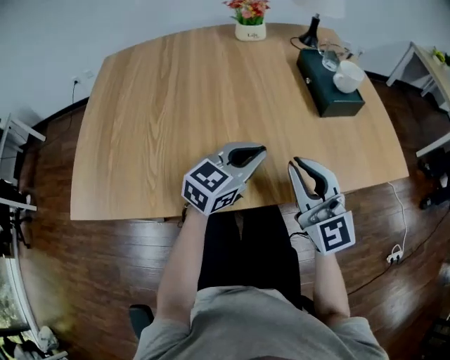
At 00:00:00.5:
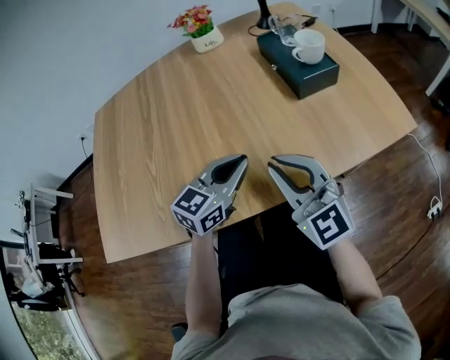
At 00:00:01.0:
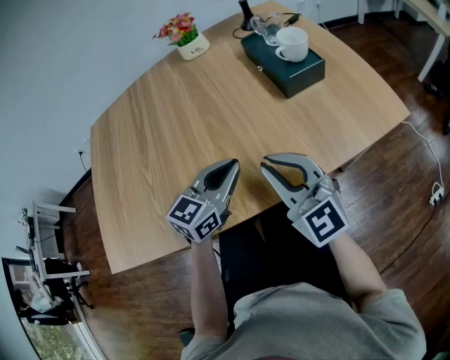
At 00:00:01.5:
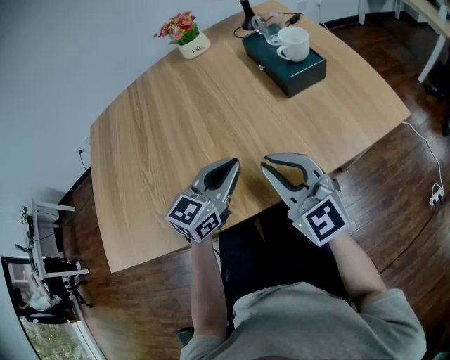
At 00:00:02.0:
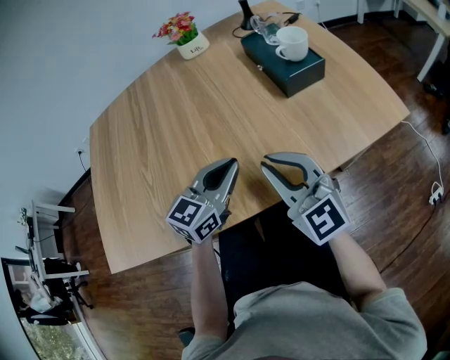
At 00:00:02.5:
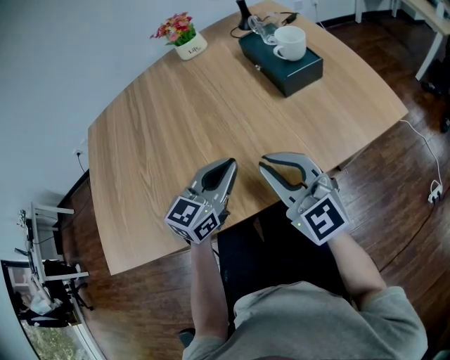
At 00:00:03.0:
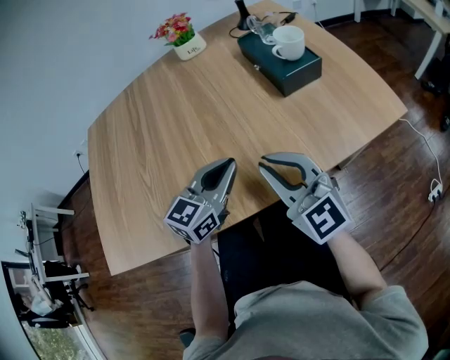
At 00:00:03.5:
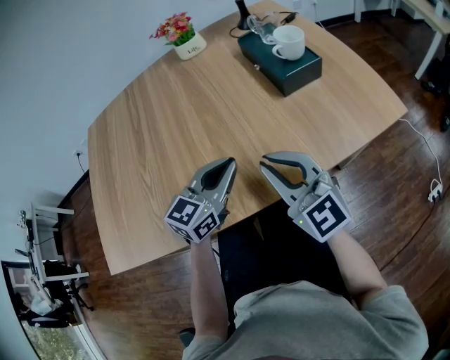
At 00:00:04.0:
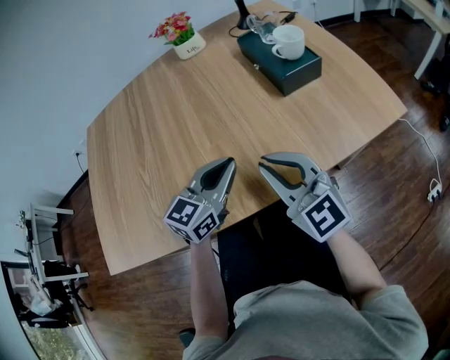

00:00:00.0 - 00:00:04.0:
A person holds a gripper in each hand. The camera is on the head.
00:00:00.0 - 00:00:02.0: Both grippers stay put.
00:00:02.0 - 00:00:04.0: The two grippers keep their place.

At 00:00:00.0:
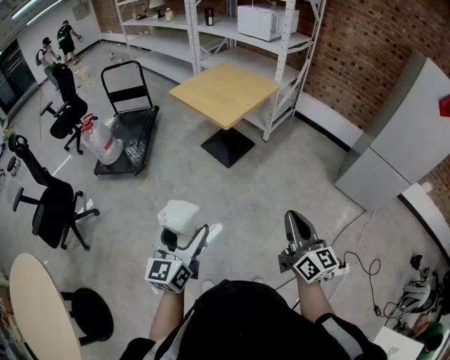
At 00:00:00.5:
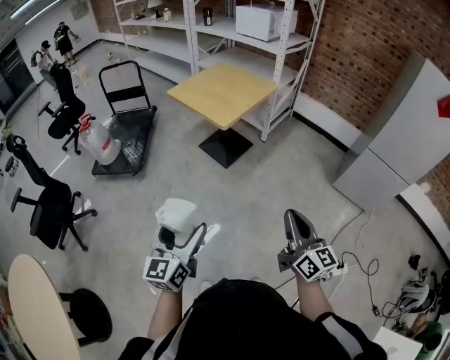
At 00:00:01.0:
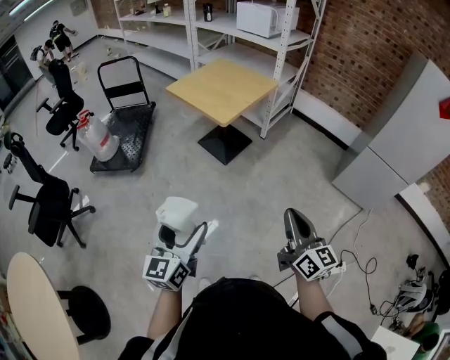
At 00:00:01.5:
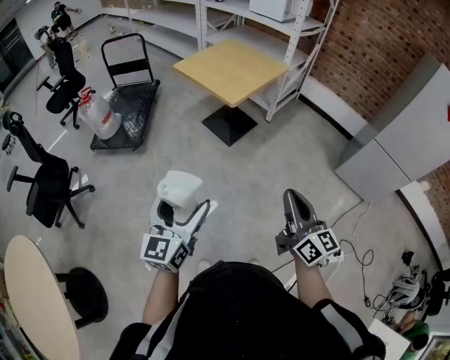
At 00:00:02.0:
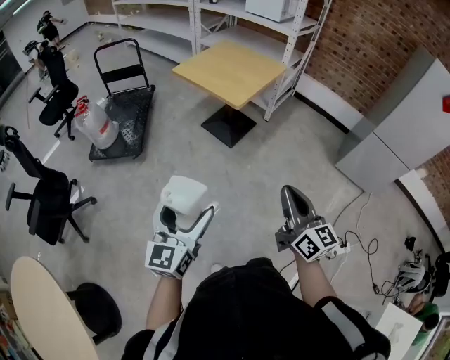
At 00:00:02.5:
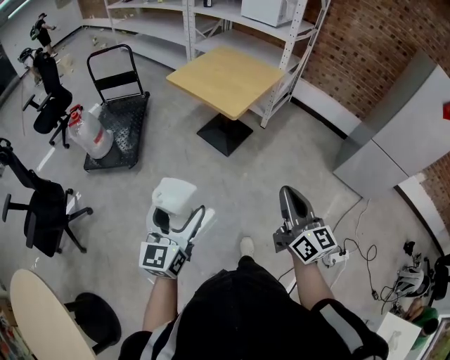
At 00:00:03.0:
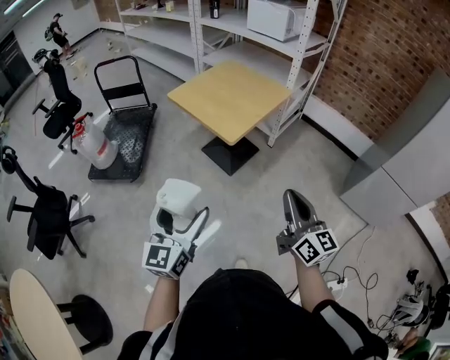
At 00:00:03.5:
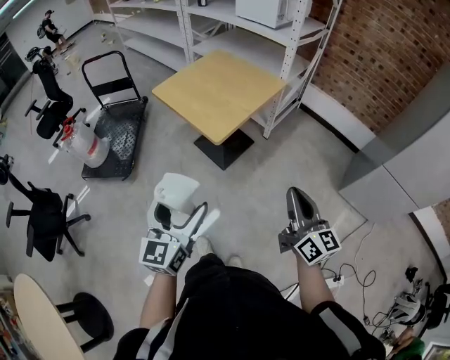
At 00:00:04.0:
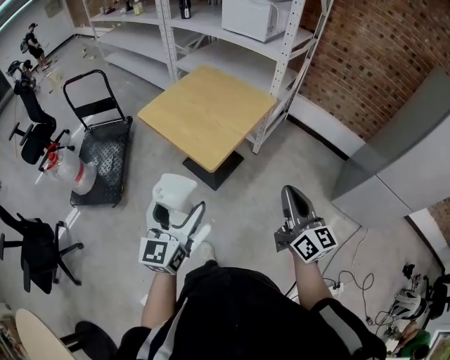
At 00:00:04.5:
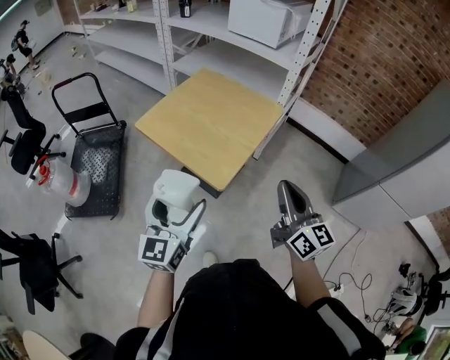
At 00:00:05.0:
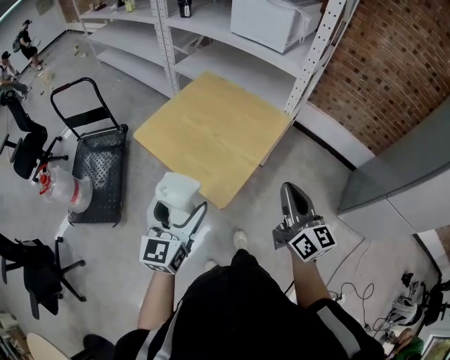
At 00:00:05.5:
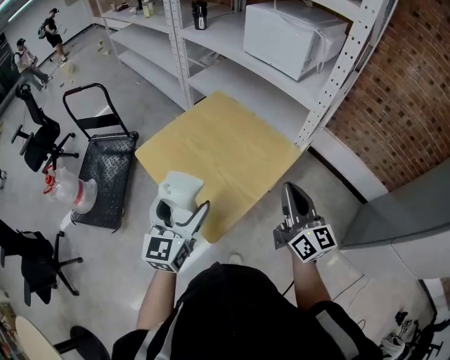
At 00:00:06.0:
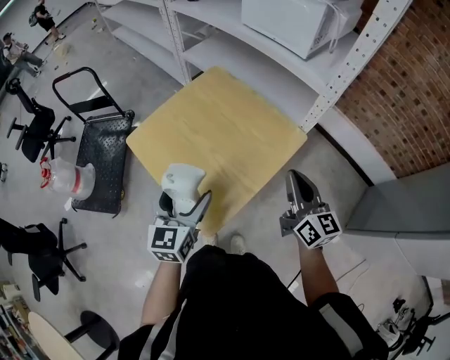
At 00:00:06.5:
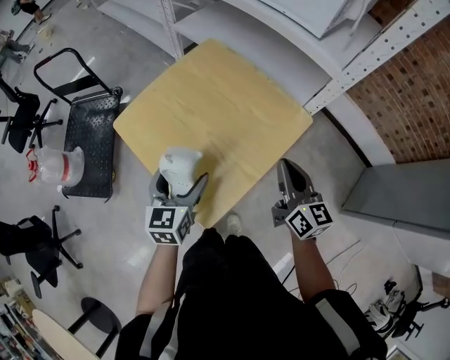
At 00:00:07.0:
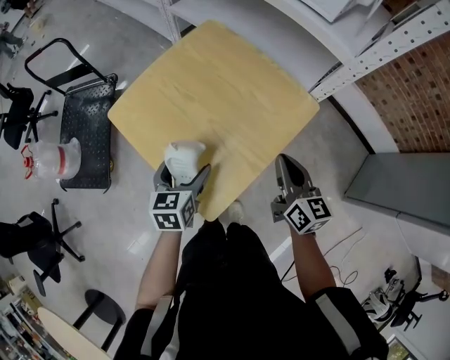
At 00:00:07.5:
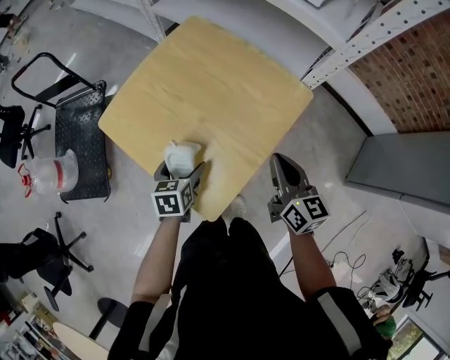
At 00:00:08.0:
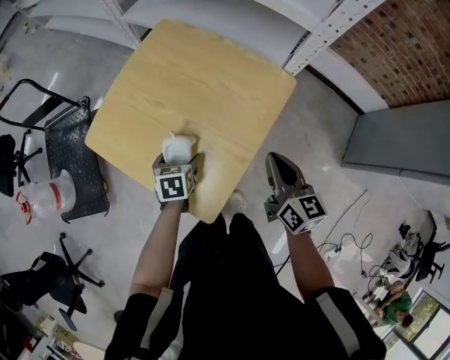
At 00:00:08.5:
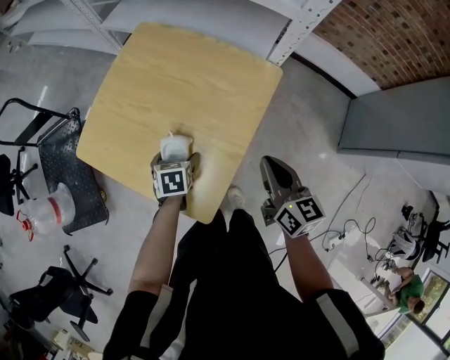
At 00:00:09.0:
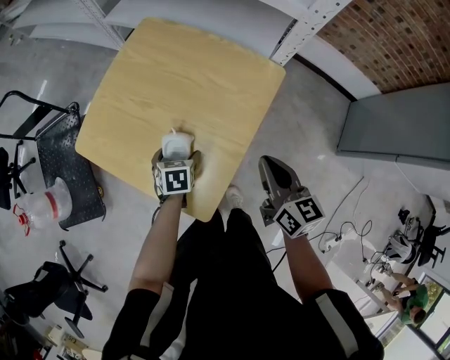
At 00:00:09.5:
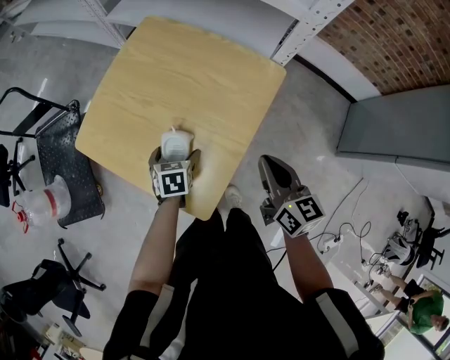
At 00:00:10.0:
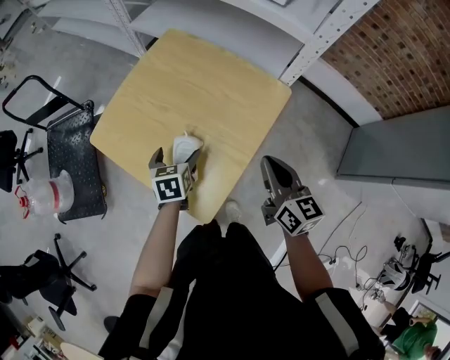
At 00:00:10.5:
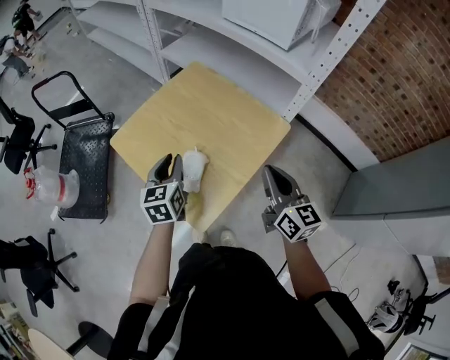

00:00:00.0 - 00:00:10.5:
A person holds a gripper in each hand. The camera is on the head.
00:00:00.0 - 00:00:02.0: The grippers both shift to the left by roughly 10 cm.
00:00:02.0 - 00:00:04.0: Both grippers move forward, some 35 cm.
00:00:04.0 - 00:00:06.5: Both grippers move forward, approximately 40 cm. The left gripper changes its angle by approximately 30 degrees.
00:00:06.5 - 00:00:08.5: The right gripper moves backward and downward, roughly 10 cm. The left gripper is displaced downward by about 20 cm, and tilts its fingers roughly 40 degrees downward.
00:00:08.5 - 00:00:10.5: The left gripper is displaced upward by approximately 20 cm, angles its fingers upward, by about 40 degrees, and closes up, while the right gripper is displaced upward by approximately 10 cm.

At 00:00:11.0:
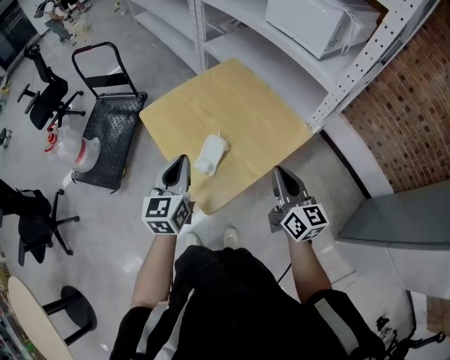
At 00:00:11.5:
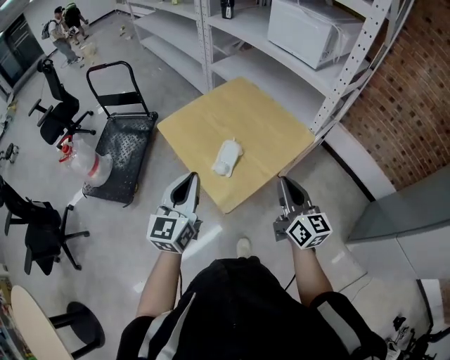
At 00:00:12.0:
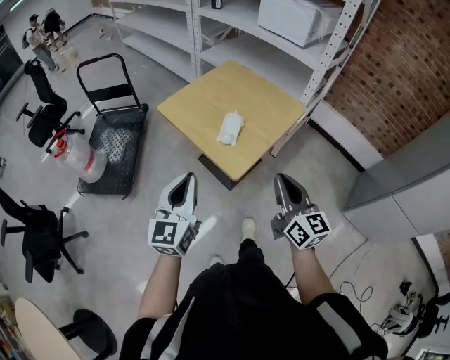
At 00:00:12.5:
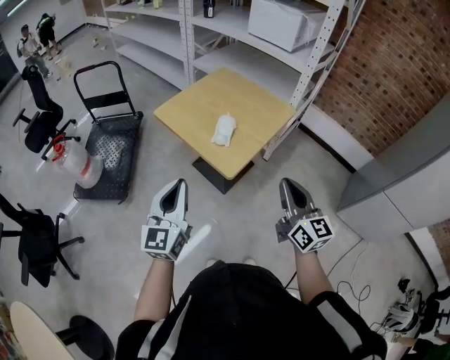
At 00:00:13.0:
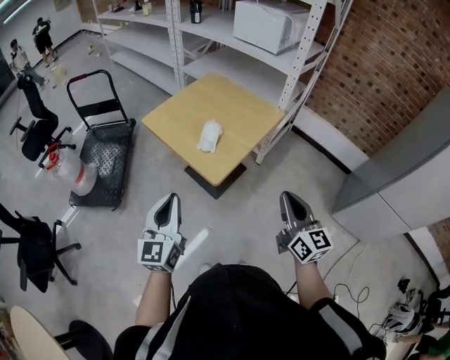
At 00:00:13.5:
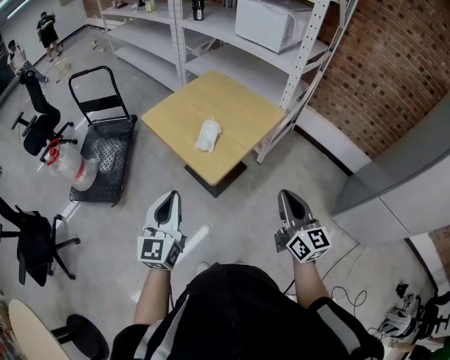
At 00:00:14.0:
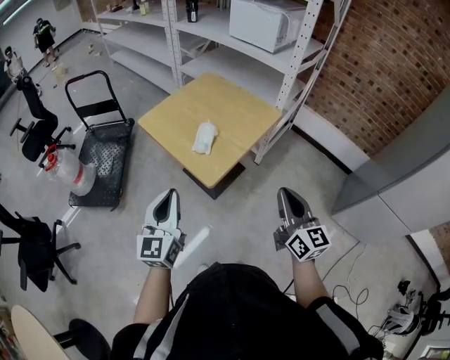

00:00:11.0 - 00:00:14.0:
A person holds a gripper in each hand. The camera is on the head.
00:00:11.0 - 00:00:12.5: The left gripper goes roughly 25 cm backward and to the left. The right gripper moves backward, some 25 cm.
00:00:12.5 - 00:00:14.0: The two grippers go some 5 cm to the right.

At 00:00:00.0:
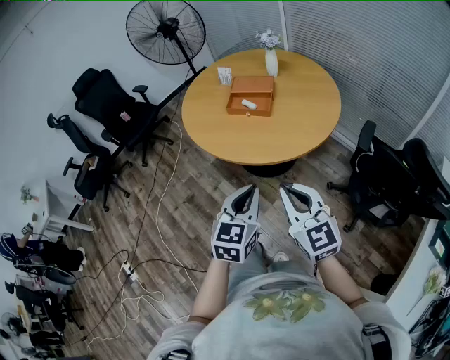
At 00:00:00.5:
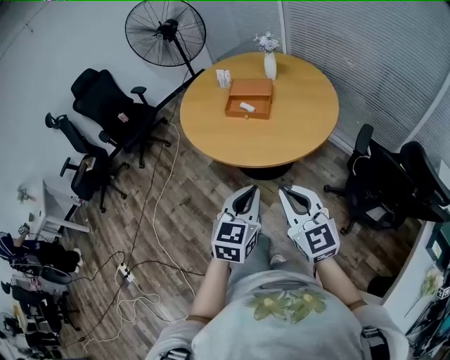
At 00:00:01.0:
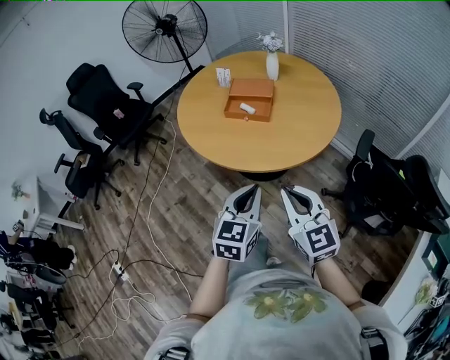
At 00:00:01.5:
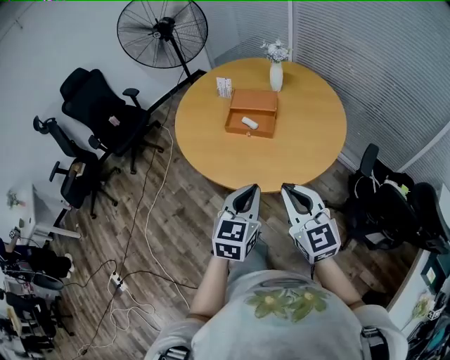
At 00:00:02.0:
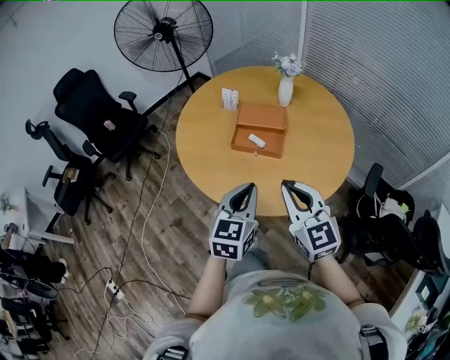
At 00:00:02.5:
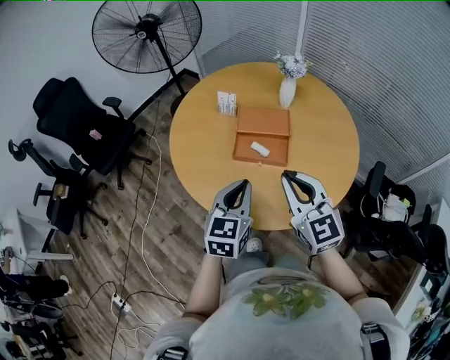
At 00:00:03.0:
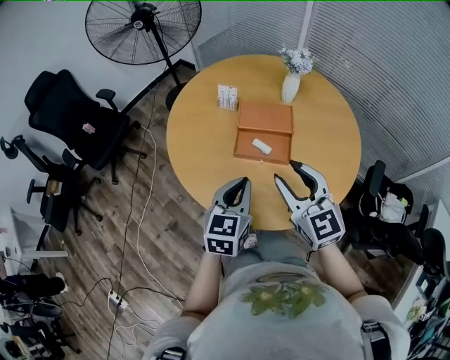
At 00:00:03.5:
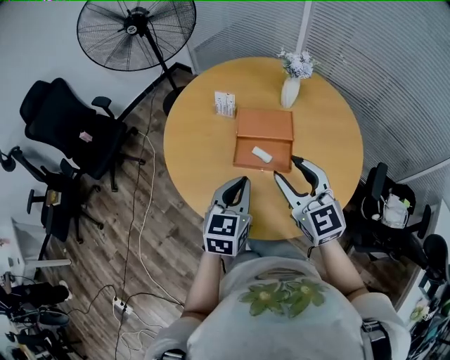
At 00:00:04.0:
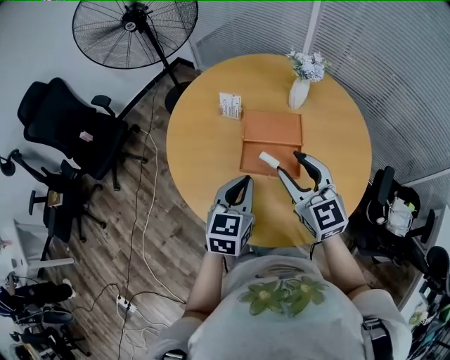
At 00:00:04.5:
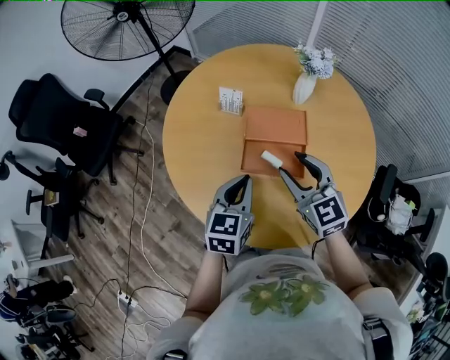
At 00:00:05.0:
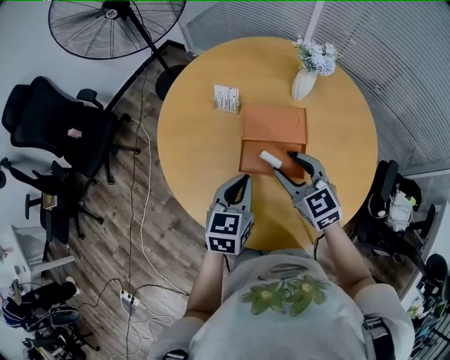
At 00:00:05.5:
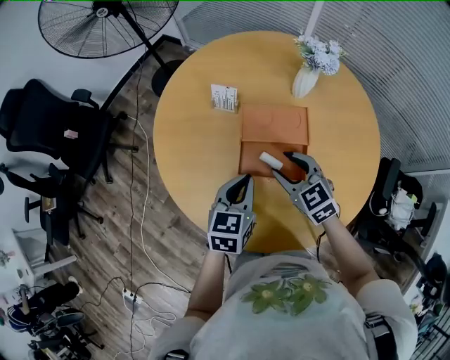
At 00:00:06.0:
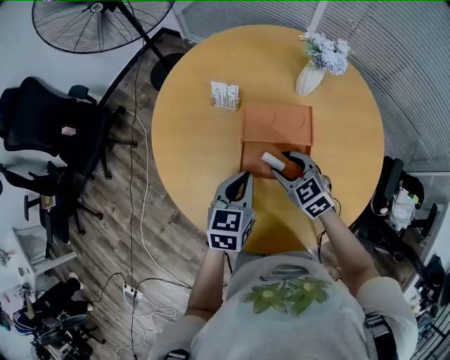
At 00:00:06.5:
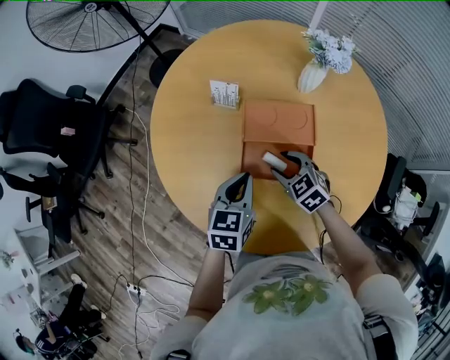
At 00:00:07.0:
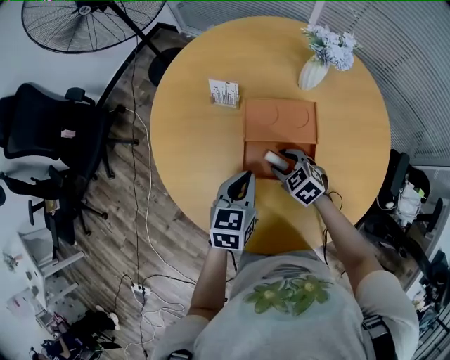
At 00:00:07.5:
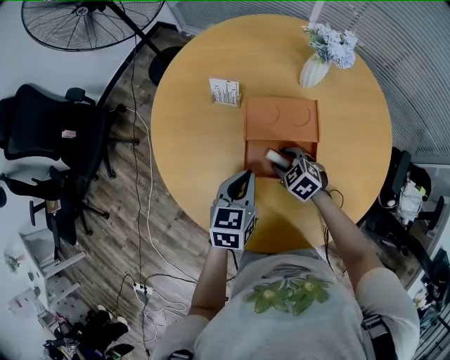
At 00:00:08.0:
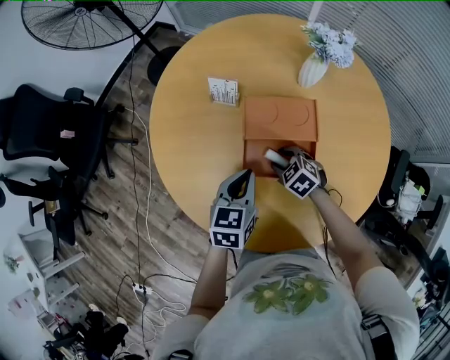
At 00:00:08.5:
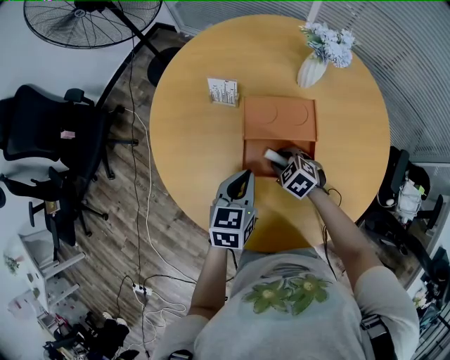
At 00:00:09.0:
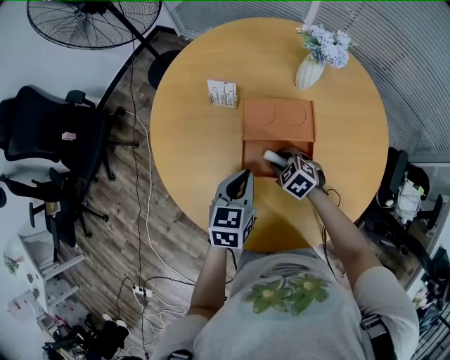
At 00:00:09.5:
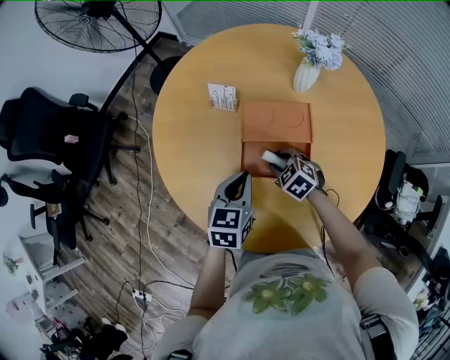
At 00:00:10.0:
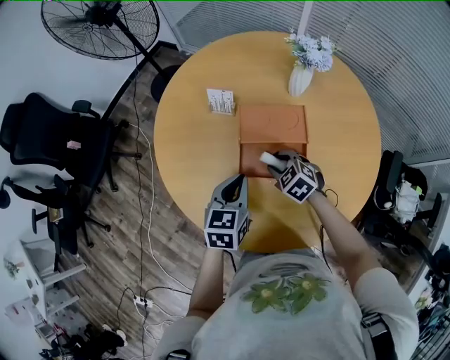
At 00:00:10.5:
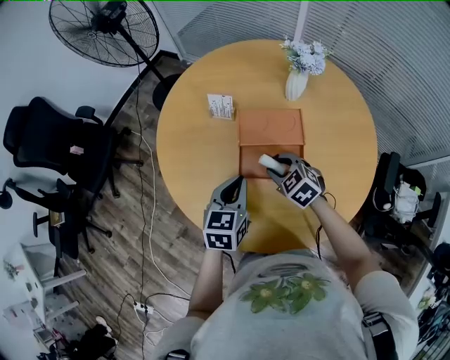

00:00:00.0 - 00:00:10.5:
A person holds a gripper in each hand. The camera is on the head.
00:00:00.0 - 00:00:02.0: The grippers both shift forward by about 25 cm.
00:00:02.0 - 00:00:04.0: Both grippers move forward, some 25 cm. The right gripper opens.
00:00:04.0 - 00:00:06.5: The right gripper moves downward, approximately 25 cm, and tilts its fingers about 40 degrees downward; the left gripper goes approximately 15 cm downward and forward.
00:00:06.5 - 00:00:08.5: The right gripper heads downward, covering approximately 5 cm.
00:00:08.5 - 00:00:10.5: The right gripper shifts some 10 cm upward; the left gripper shifts by roughly 5 cm.
